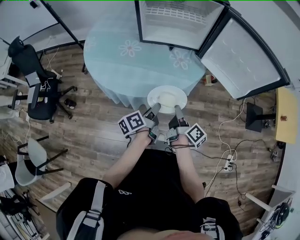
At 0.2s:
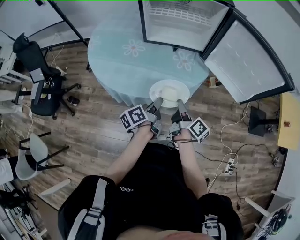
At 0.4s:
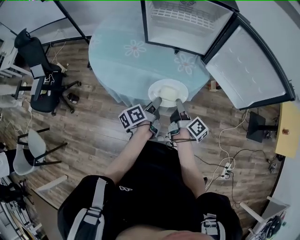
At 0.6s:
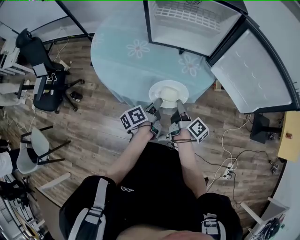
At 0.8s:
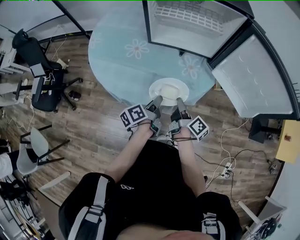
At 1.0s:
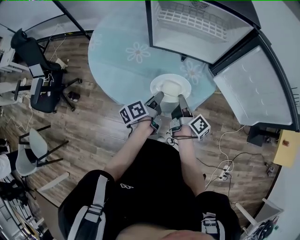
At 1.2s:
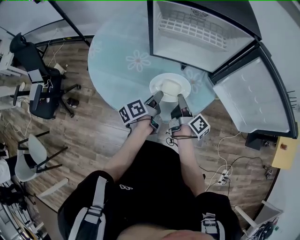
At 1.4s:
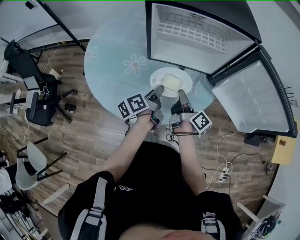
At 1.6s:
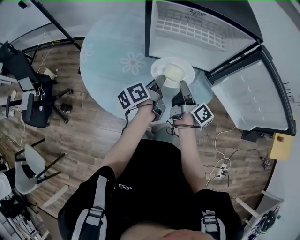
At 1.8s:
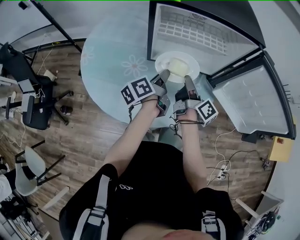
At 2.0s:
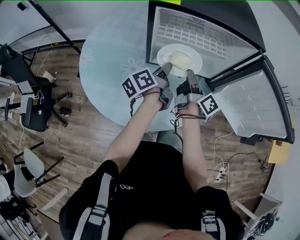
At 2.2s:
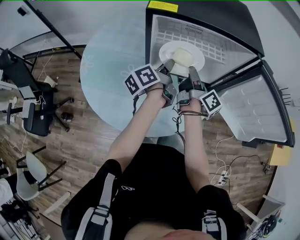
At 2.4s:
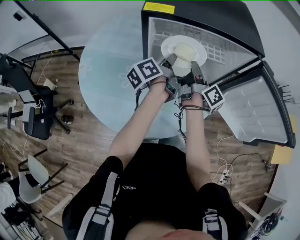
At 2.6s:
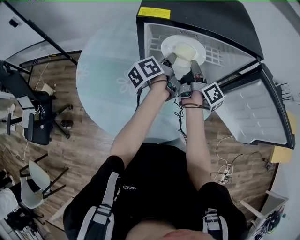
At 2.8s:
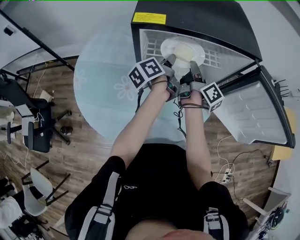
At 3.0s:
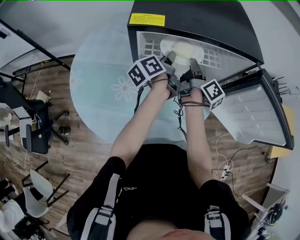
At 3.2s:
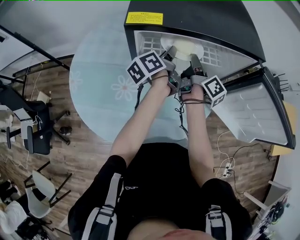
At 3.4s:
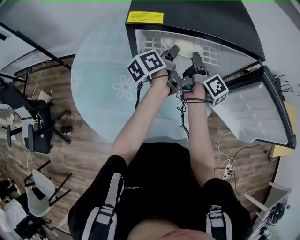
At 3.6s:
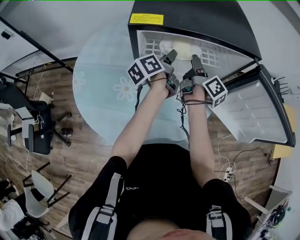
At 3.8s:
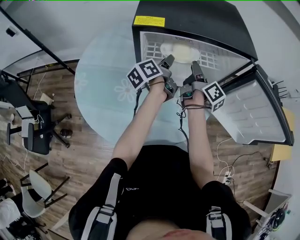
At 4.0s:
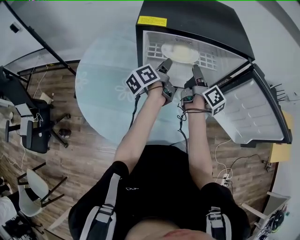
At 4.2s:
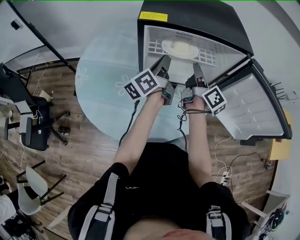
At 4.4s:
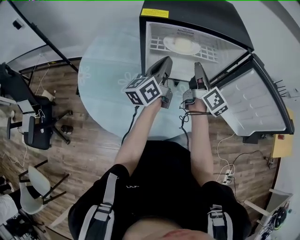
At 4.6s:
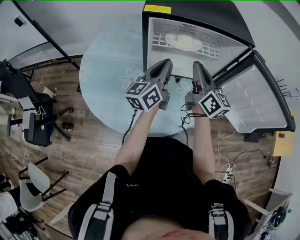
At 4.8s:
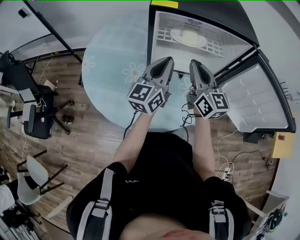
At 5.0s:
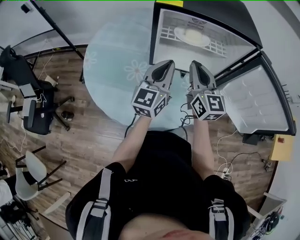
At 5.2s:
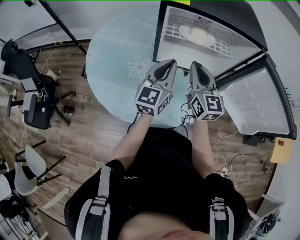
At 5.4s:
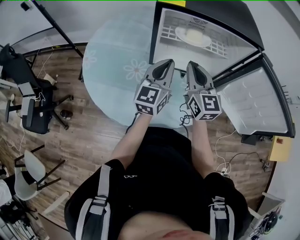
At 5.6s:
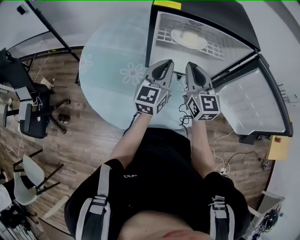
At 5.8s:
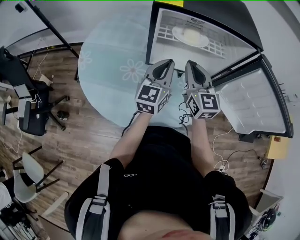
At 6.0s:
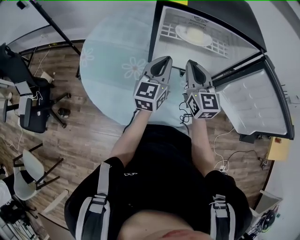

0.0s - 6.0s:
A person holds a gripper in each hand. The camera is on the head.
0.0s - 1.6s: The grippers both shift forward by about 25 cm.
1.6s - 3.0s: Both grippers move forward, some 20 cm.
3.0s - 4.4s: The grippers both shift backward and upward by some 15 cm. The right gripper turns by approximately 30 degrees, and opens, then closes once more, while the left gripper turns by roughly 30 degrees, and opens, then closes again.
4.4s - 6.0s: The right gripper goes some 10 cm to the left, and twists some 50 degrees counterclockwise, seen from behind. The left gripper changes place by approximately 5 cm, and turns by about 30 degrees.

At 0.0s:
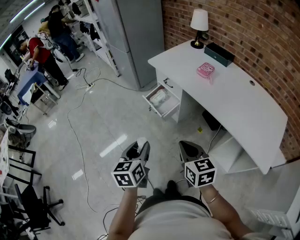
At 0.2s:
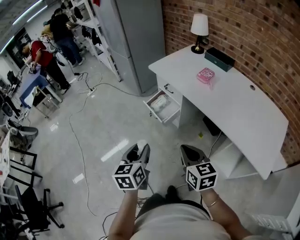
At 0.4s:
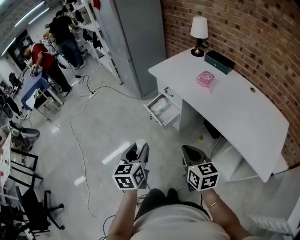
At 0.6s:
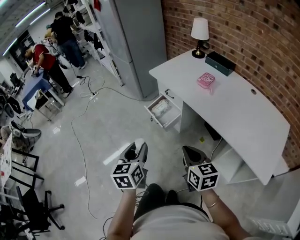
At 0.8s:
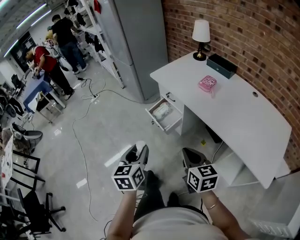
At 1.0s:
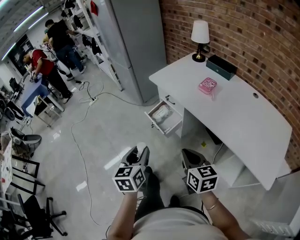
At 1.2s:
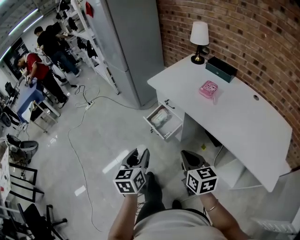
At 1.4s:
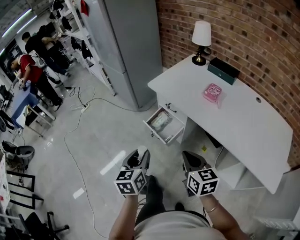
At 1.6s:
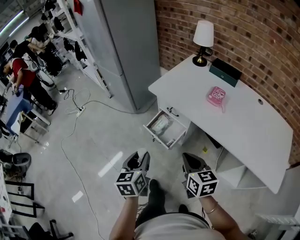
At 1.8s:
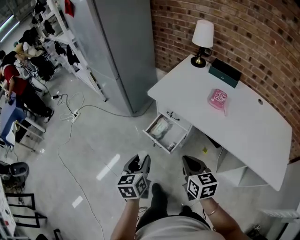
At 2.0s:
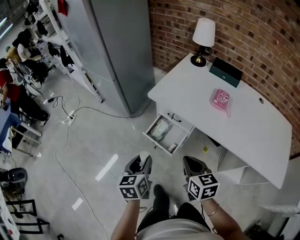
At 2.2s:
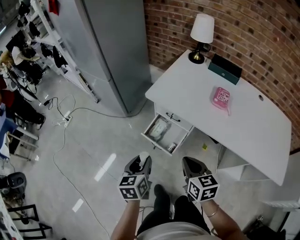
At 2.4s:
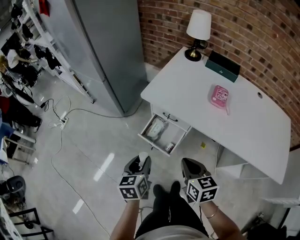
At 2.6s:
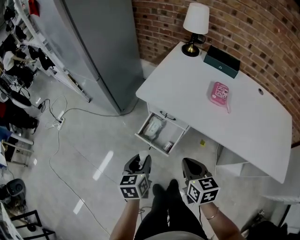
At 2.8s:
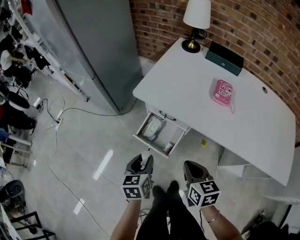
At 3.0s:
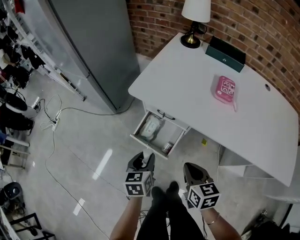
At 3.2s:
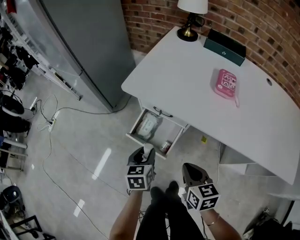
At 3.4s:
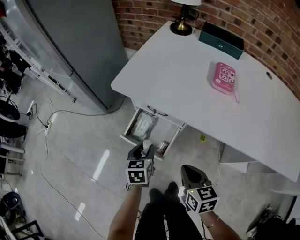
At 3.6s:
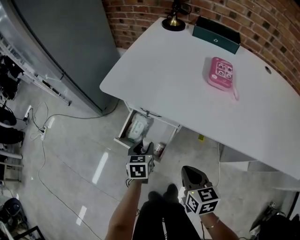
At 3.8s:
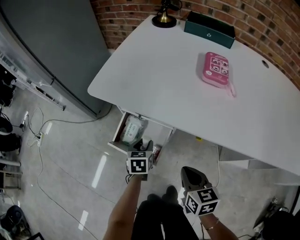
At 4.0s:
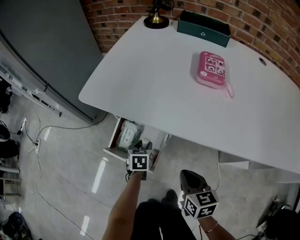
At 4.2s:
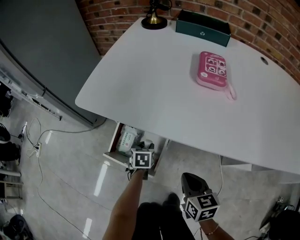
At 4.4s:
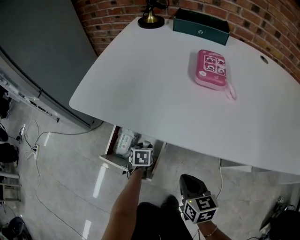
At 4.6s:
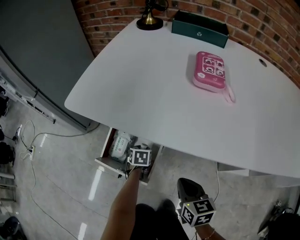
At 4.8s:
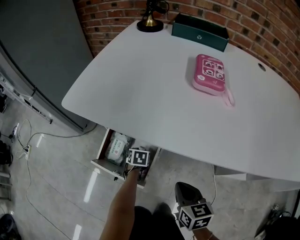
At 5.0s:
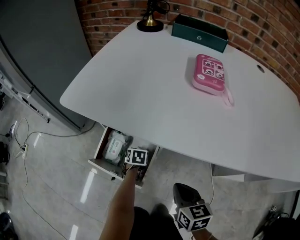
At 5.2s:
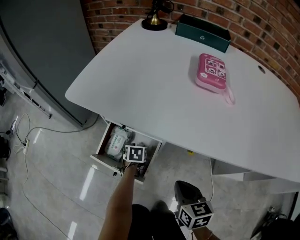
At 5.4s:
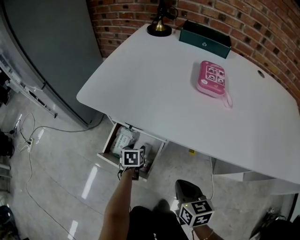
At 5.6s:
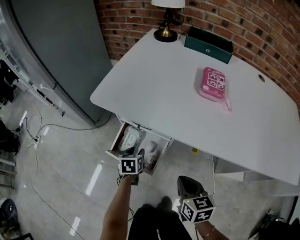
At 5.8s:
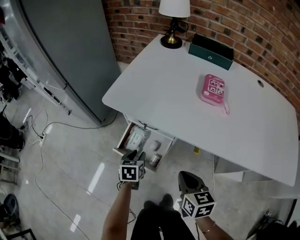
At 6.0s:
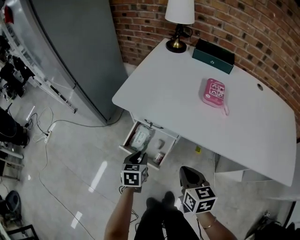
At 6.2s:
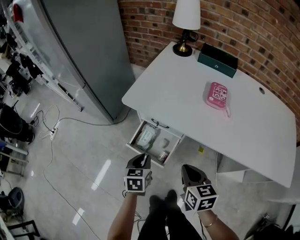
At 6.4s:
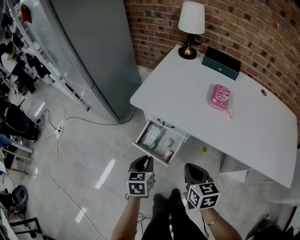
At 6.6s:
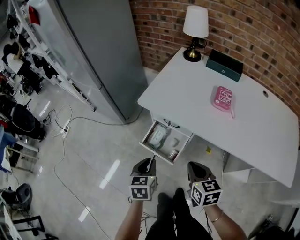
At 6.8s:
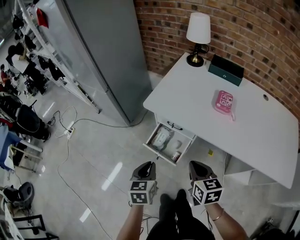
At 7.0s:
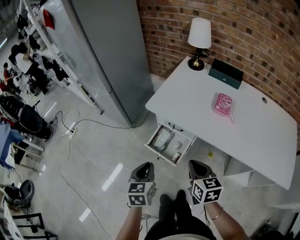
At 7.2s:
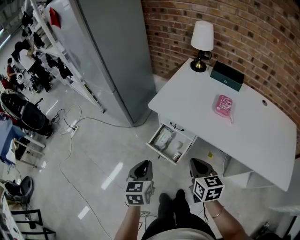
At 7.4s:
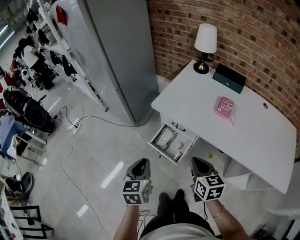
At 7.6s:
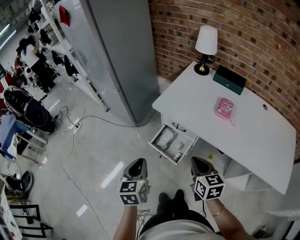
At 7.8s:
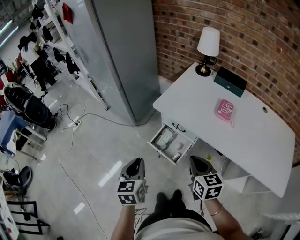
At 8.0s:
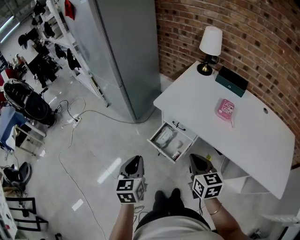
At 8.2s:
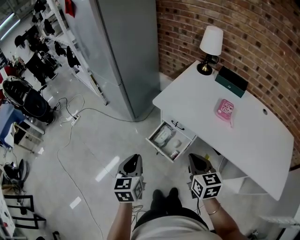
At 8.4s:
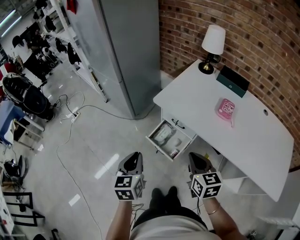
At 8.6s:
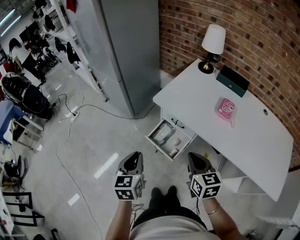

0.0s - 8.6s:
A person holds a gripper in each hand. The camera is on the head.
0.0s - 1.4s: The grippers both shift forward by about 20 cm.
1.4s - 2.8s: The left gripper moves forward and downward, some 30 cm, and rotates roughly 20 degrees, while the right gripper travels forward, downward and to the left by roughly 25 cm, and turns by some 20 degrees.
2.8s - 4.4s: The right gripper travels downward and to the right by about 30 cm, while the left gripper heads downward and forward, covering about 40 cm, and turns by about 30 degrees.
4.4s - 5.8s: The left gripper moves upward, backward and to the left, approximately 20 cm; the right gripper travels upward by approximately 15 cm.
5.8s - 7.2s: The left gripper heads upward and backward, covering approximately 40 cm, swivels approximately 20 degrees, and closes its fingers, while the right gripper shifts about 20 cm upward.
7.2s - 8.6s: The left gripper shifts by some 5 cm.

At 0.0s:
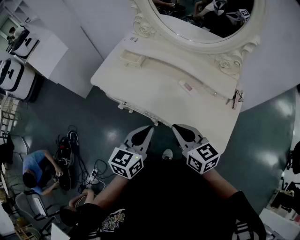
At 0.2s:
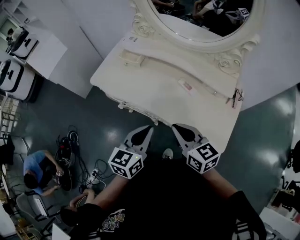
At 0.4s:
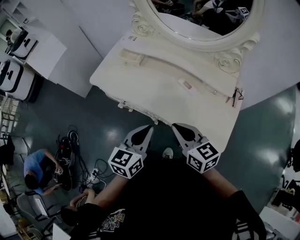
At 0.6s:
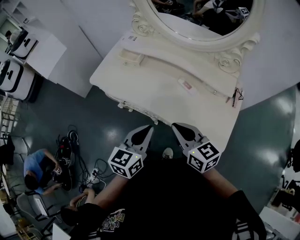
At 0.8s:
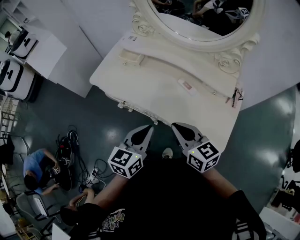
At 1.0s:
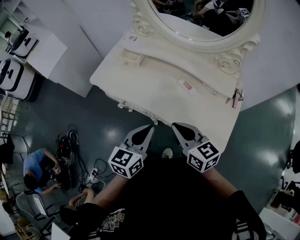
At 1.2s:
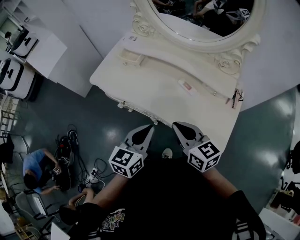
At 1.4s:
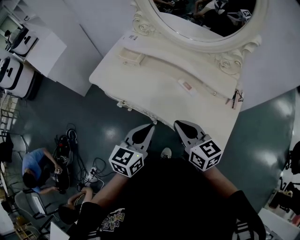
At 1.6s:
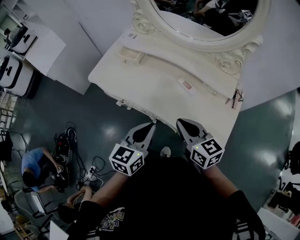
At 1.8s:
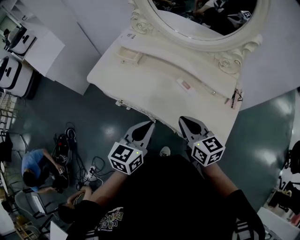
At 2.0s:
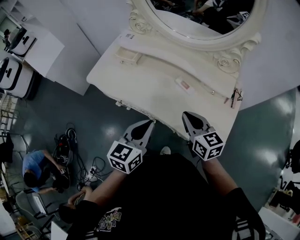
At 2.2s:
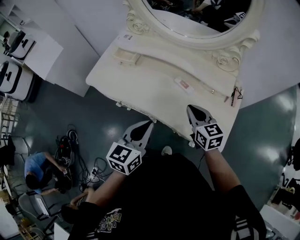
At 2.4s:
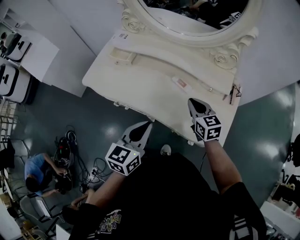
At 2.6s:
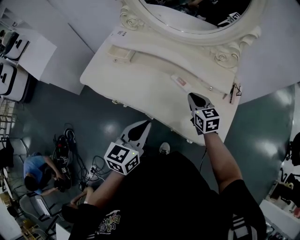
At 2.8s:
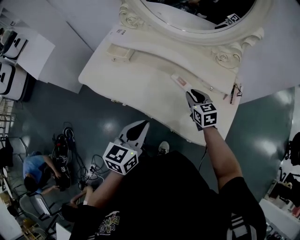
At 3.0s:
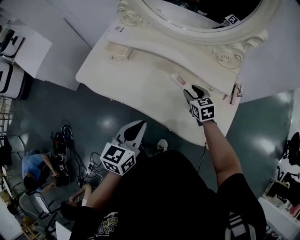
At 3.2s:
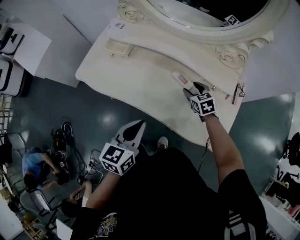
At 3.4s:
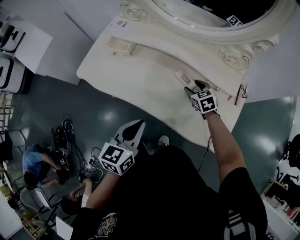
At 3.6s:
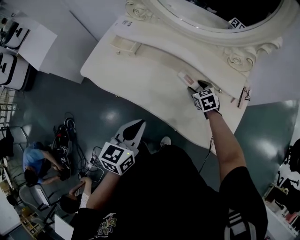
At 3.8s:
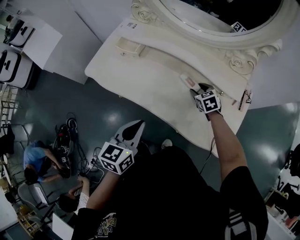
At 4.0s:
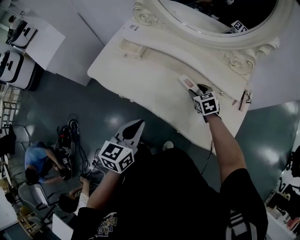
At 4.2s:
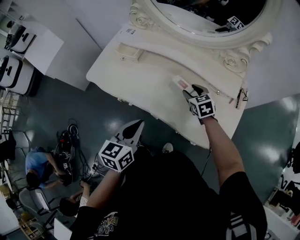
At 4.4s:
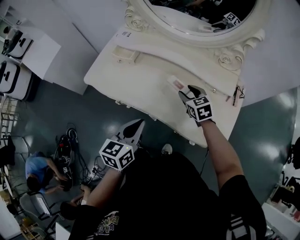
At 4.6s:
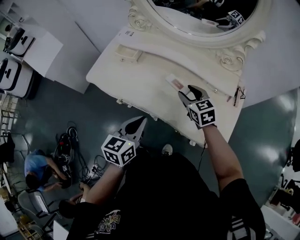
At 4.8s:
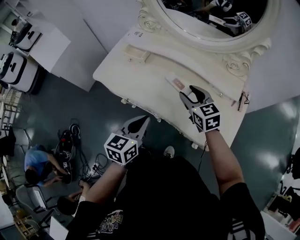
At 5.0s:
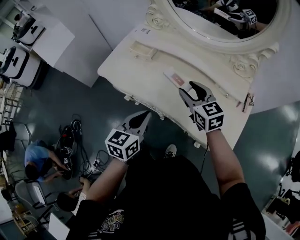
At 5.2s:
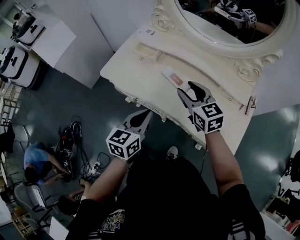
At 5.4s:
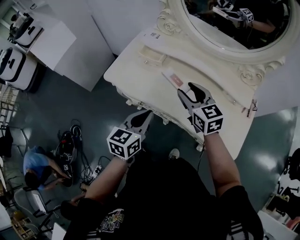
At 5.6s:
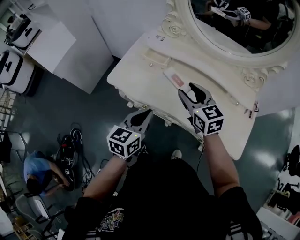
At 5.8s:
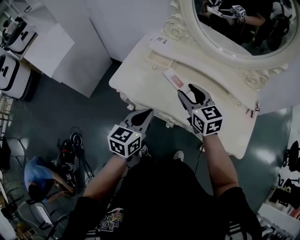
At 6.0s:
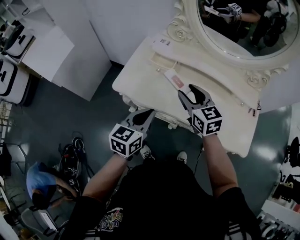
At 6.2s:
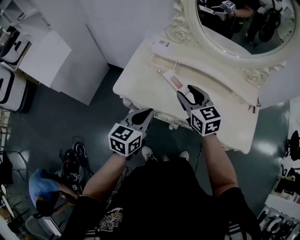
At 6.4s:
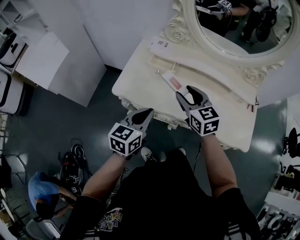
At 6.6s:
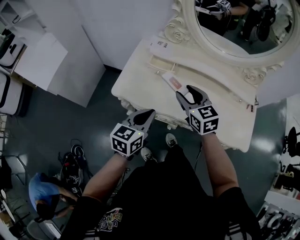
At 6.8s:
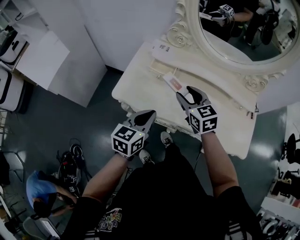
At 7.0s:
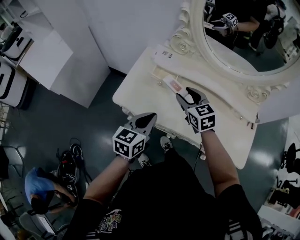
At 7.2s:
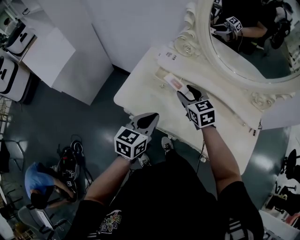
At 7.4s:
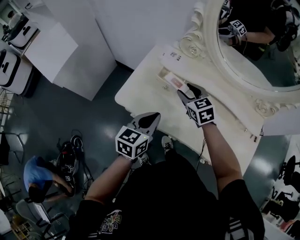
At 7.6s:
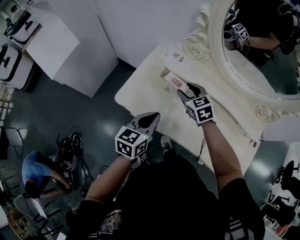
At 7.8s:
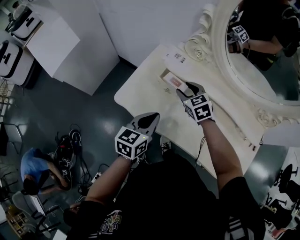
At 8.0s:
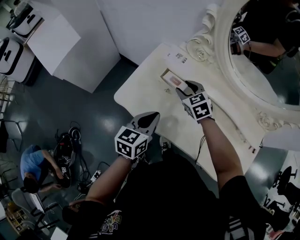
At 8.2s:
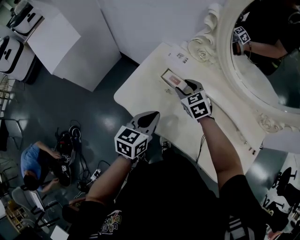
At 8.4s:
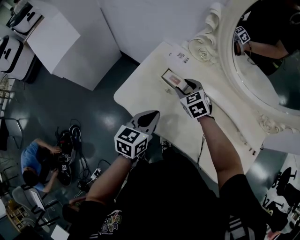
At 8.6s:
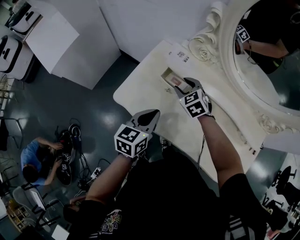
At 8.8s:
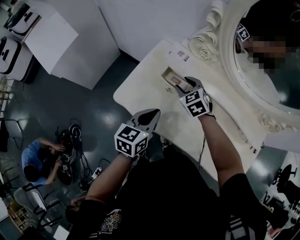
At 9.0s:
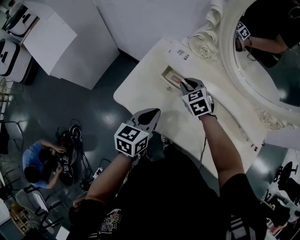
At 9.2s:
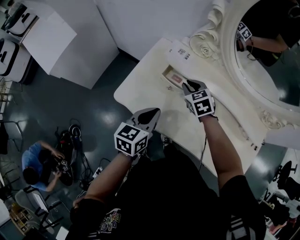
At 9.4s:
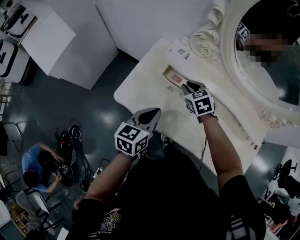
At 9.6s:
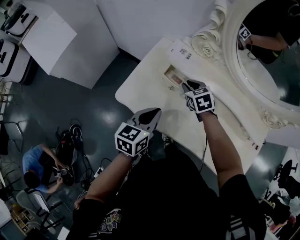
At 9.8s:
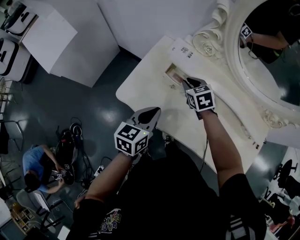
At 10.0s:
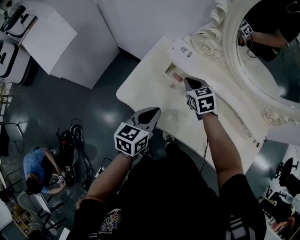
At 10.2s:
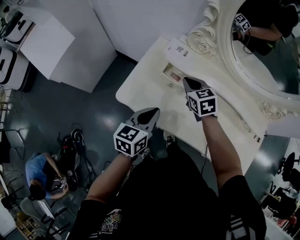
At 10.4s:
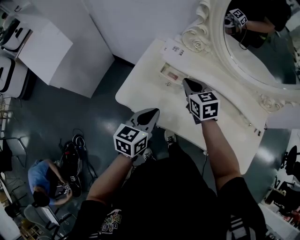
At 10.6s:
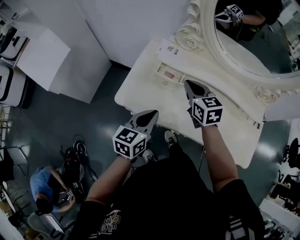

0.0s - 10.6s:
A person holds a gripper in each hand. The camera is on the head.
0.0s - 1.6s: There are only small adjustments of the grippers.
1.6s - 3.0s: The right gripper travels forward, downward and to the right by roughly 25 cm, changes its angle by about 30 degrees, and opens.
3.0s - 4.6s: The right gripper is displaced upward and to the left by some 10 cm.
4.6s - 6.0s: The left gripper shifts some 25 cm to the left and forward, while the right gripper is displaced to the left by approximately 25 cm.
6.0s - 7.6s: The right gripper is displaced forward and downward by roughly 20 cm, and swivels some 20 degrees. The left gripper travels forward by about 10 cm.
7.6s - 9.0s: The right gripper moves about 5 cm, and closes its fingers.
9.0s - 10.6s: The right gripper moves upward and backward, roughly 15 cm, and changes its angle by some 30 degrees. The left gripper shifts some 5 cm backward.
